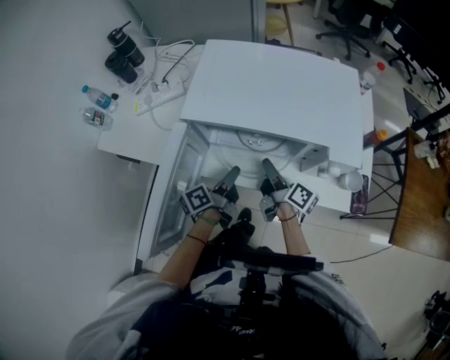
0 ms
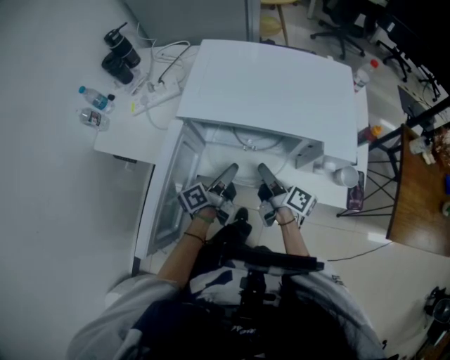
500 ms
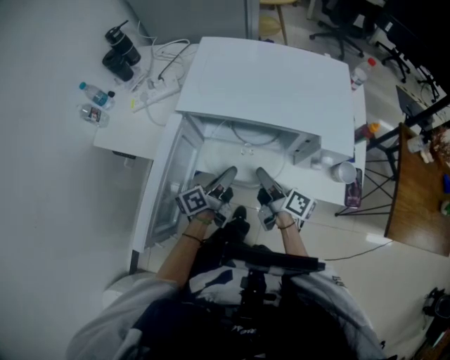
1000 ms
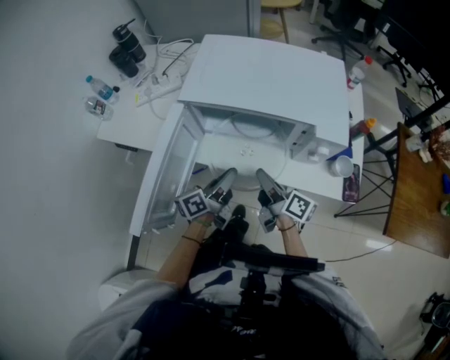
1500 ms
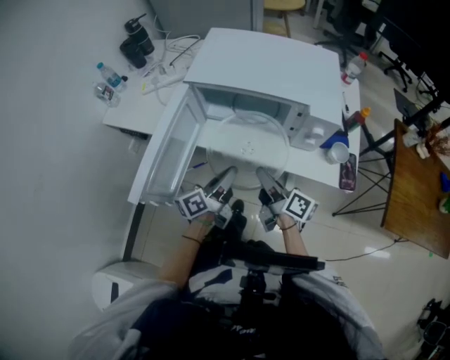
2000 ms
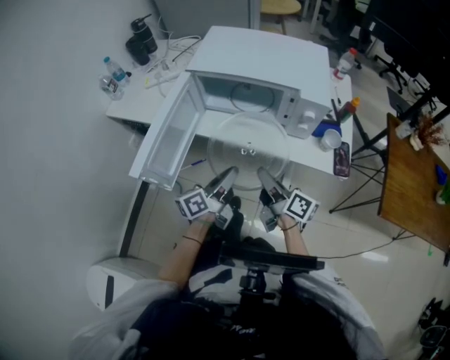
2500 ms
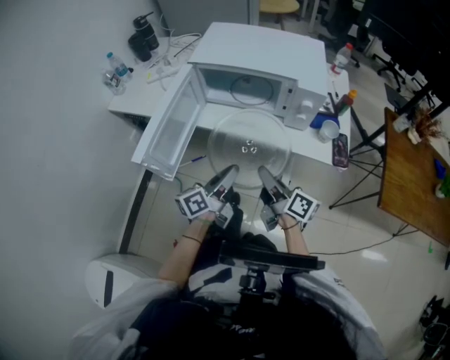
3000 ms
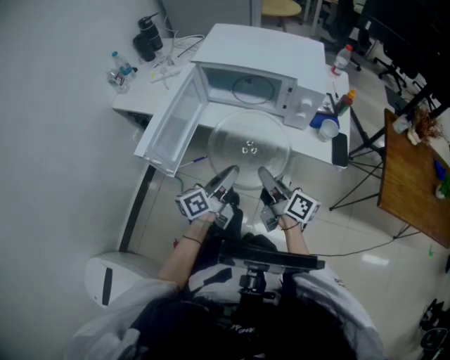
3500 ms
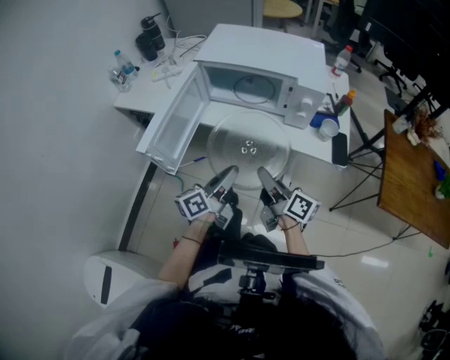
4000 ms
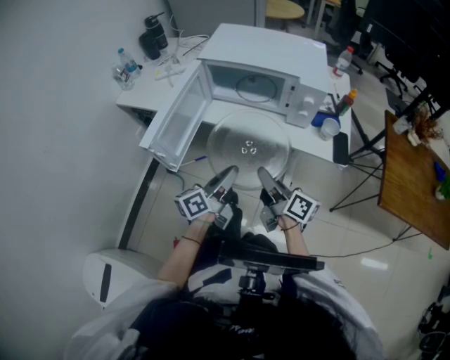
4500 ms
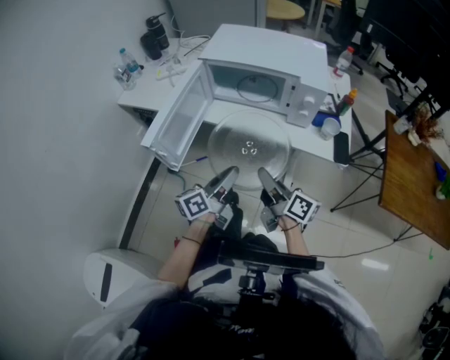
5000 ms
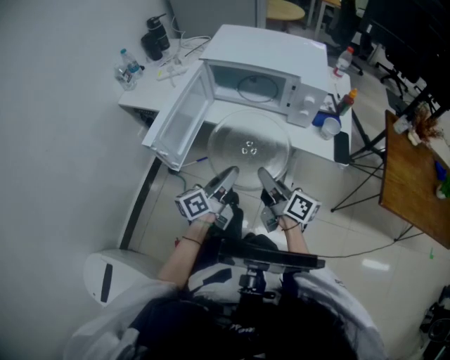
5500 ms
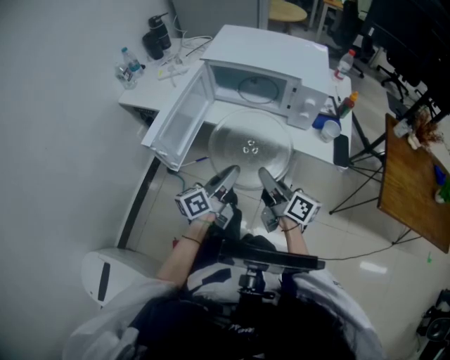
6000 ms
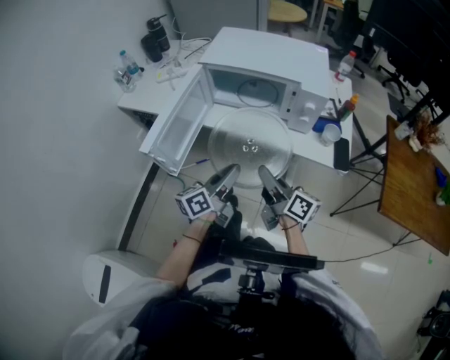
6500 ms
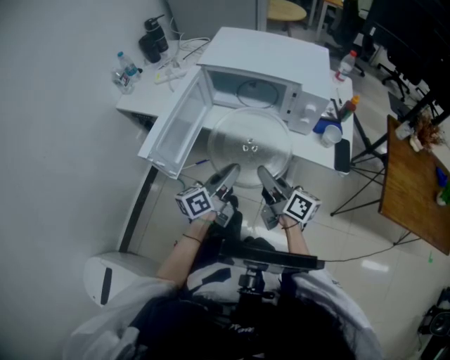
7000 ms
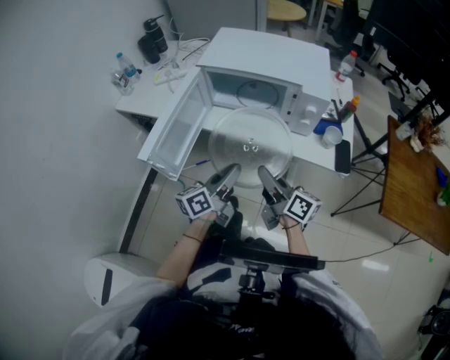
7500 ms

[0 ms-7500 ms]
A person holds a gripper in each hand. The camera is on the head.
0 ms to 2000 ms: The grippers both shift backward by some 15 cm.
2000 ms to 4000 ms: The two grippers go about 15 cm backward.
4000 ms to 5500 ms: There are only small adjustments of the grippers.
5500 ms to 7500 ms: The left gripper moves roughly 5 cm.

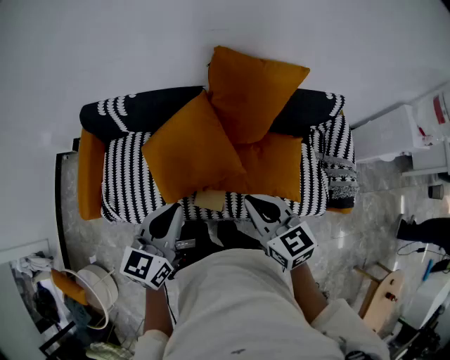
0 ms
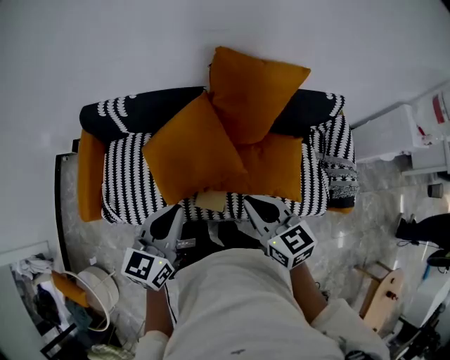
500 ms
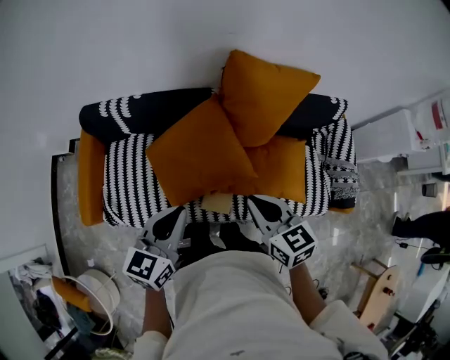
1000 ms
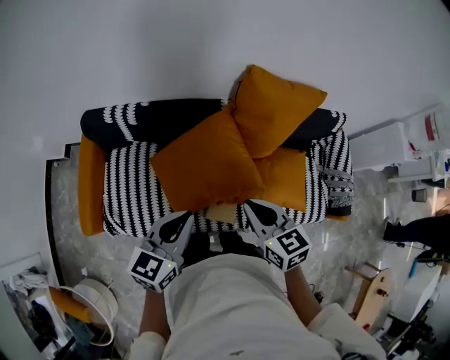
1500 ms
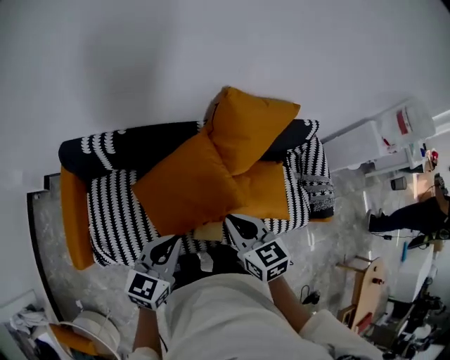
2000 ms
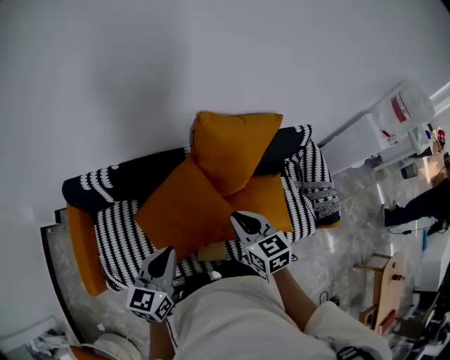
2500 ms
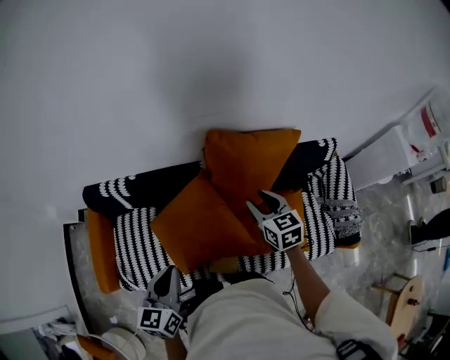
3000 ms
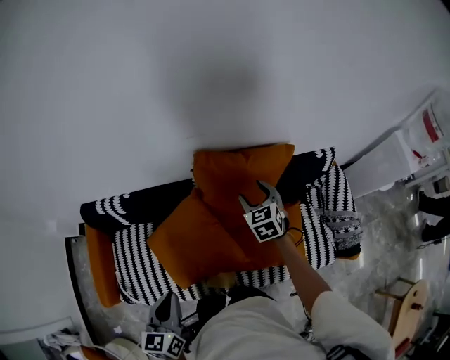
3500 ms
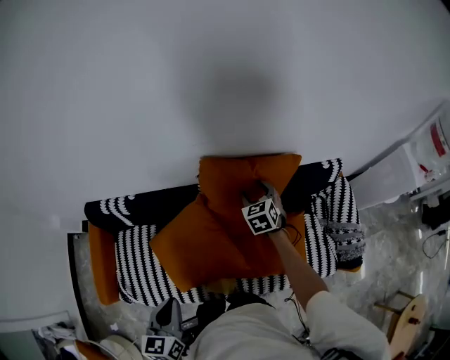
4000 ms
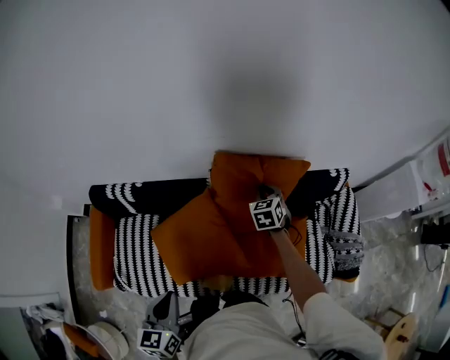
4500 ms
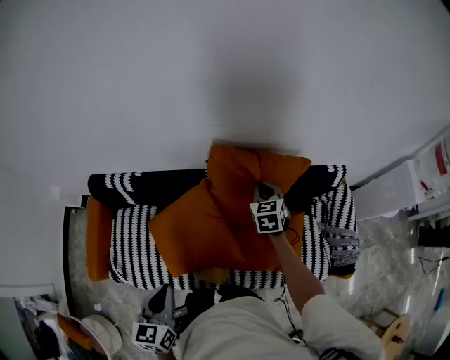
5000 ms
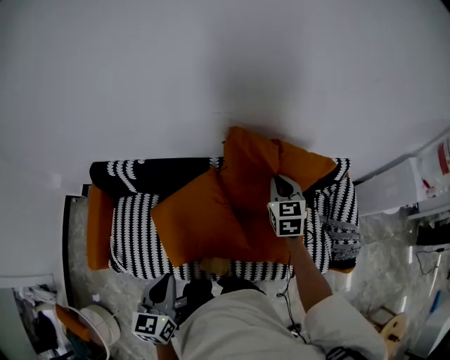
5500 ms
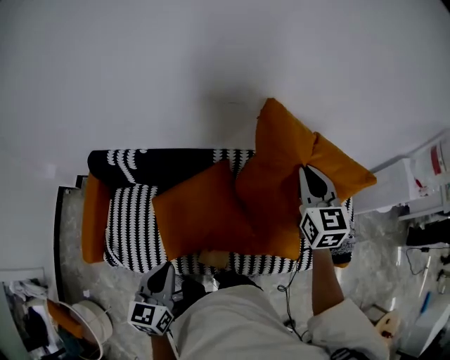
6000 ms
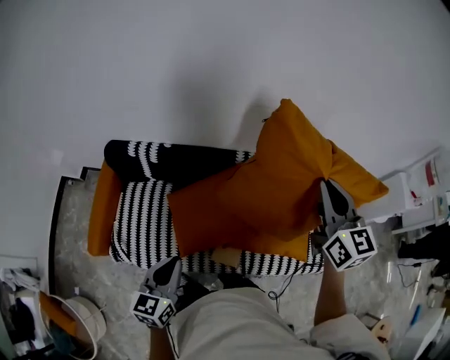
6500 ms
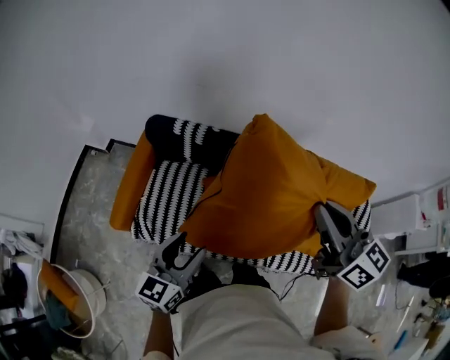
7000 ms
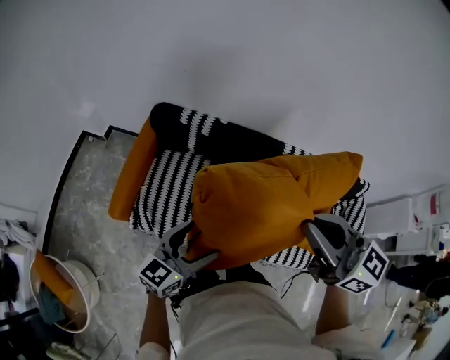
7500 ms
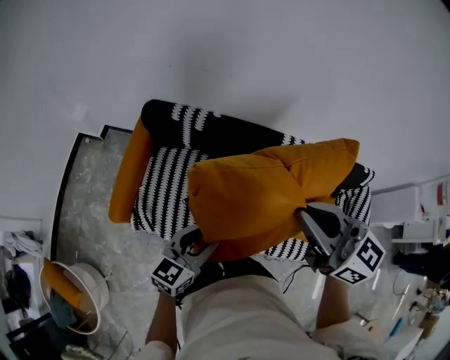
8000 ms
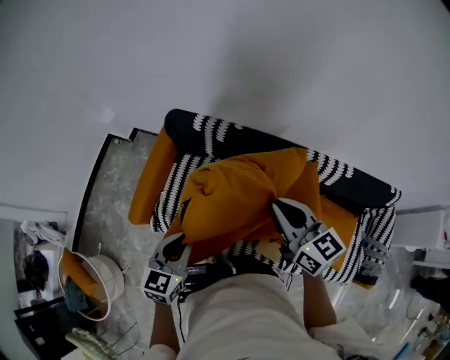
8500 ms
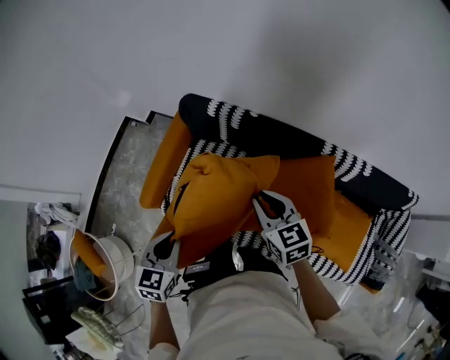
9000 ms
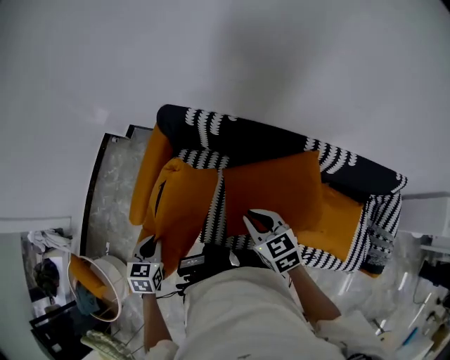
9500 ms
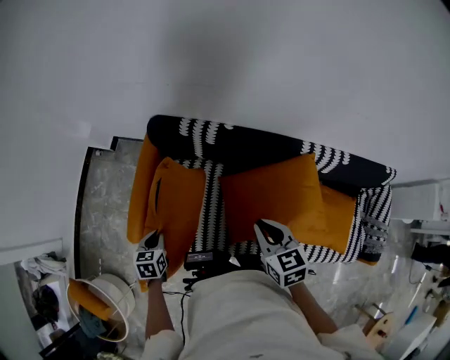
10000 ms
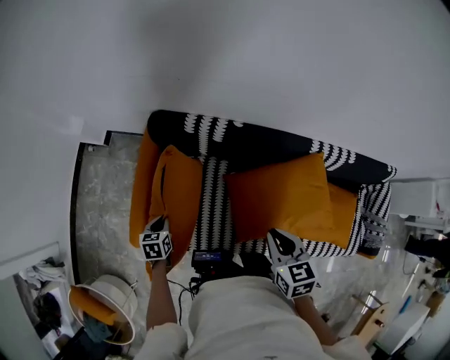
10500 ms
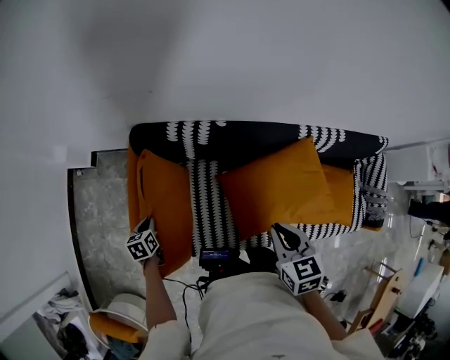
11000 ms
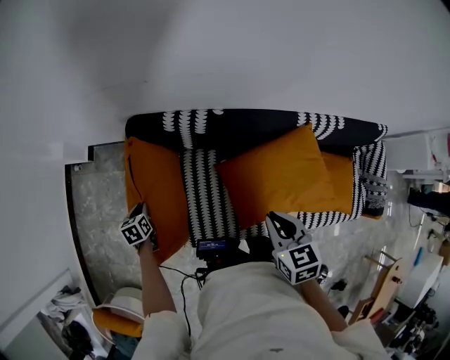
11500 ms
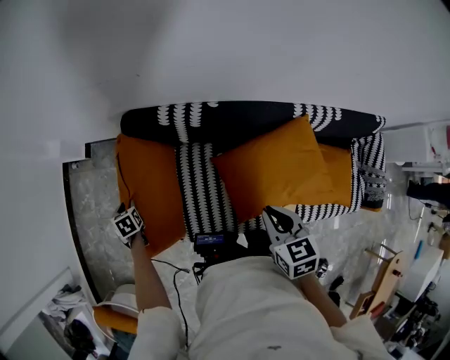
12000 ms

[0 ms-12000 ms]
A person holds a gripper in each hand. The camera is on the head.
0 ms to 2000 ms: Both grippers move to the left and forward, some 15 cm.
2000 ms to 4000 ms: The right gripper is displaced forward and to the right by some 40 cm, swivels about 20 degrees, and opens, while the left gripper shifts roughly 10 cm to the right, and changes its angle by some 30 degrees.
4000 ms to 6000 ms: The right gripper moves upward and backward, some 25 cm, rotates roughly 20 degrees, and closes up, while the left gripper ends up approximately 5 cm from where it was.
6000 ms to 8000 ms: The left gripper goes about 20 cm to the left, and opens. Meanwhile the right gripper shifts about 40 cm to the left, and swivels some 50 degrees.
8000 ms to 10000 ms: The right gripper goes roughly 25 cm downward and forward, and points its fingers roughly 30 degrees further downward. The left gripper goes approximately 30 cm to the left, downward and forward, and points its fingers about 40 degrees further downward.
10000 ms to 12000 ms: The left gripper is displaced forward, to the left and downward by roughly 25 cm.

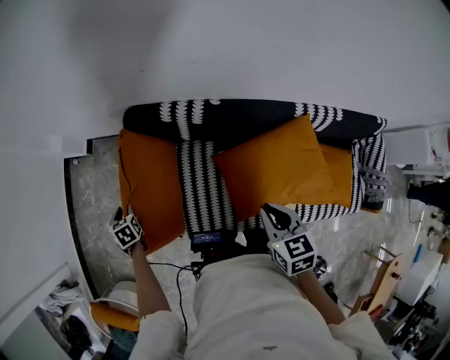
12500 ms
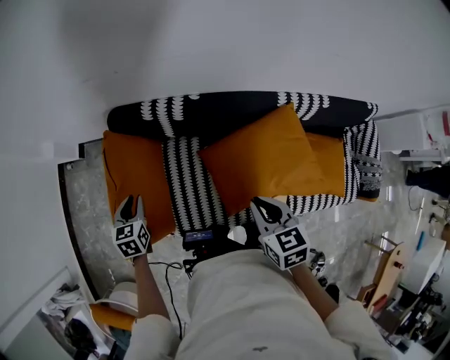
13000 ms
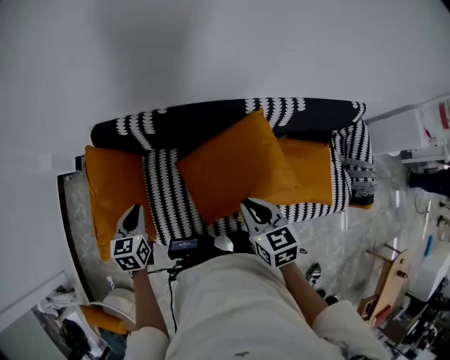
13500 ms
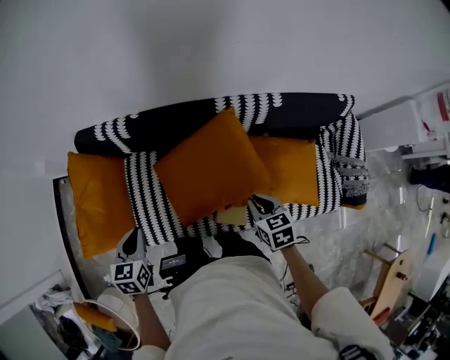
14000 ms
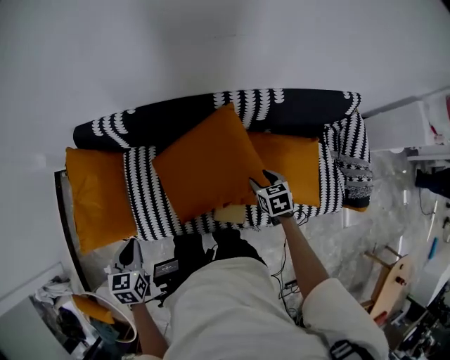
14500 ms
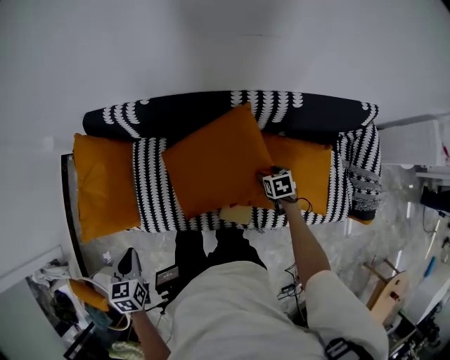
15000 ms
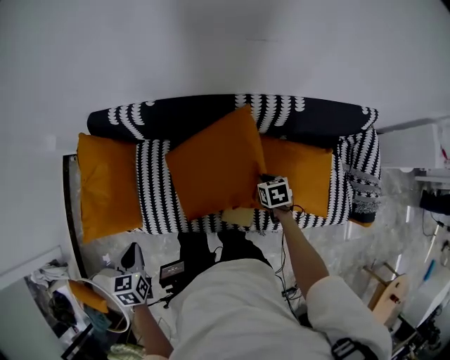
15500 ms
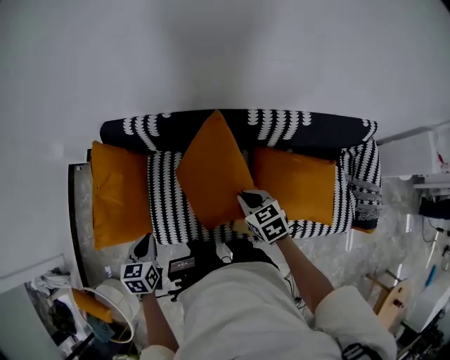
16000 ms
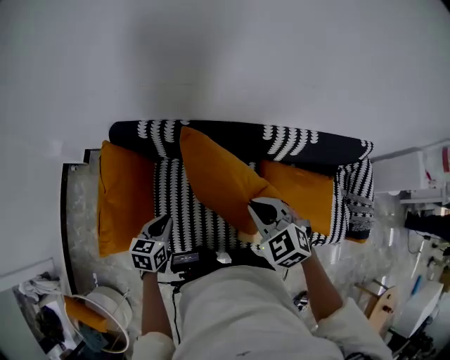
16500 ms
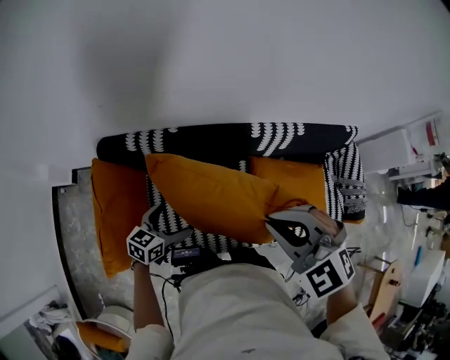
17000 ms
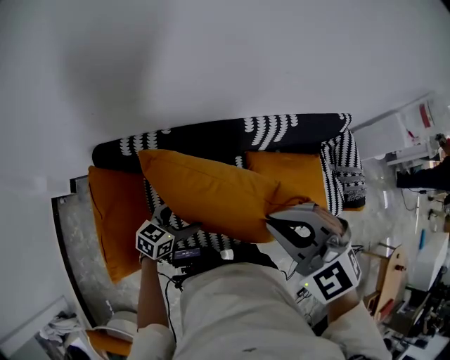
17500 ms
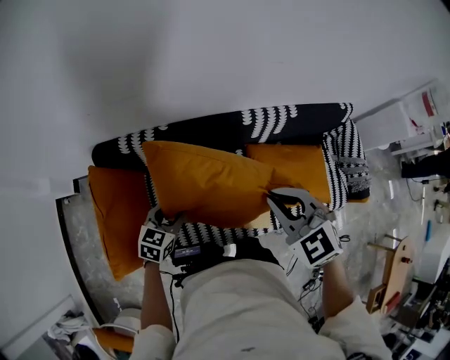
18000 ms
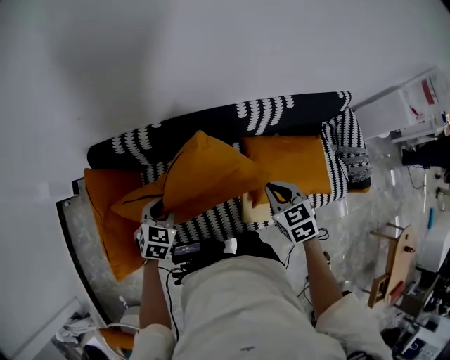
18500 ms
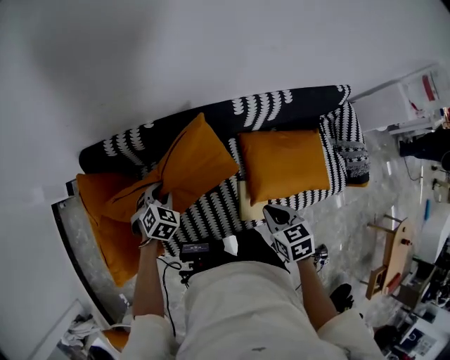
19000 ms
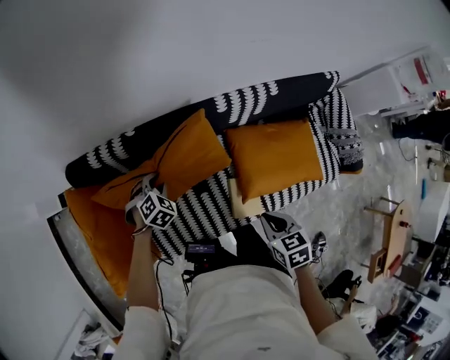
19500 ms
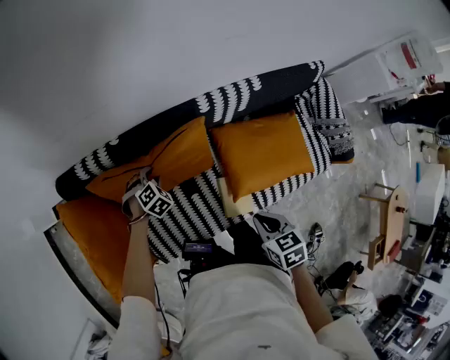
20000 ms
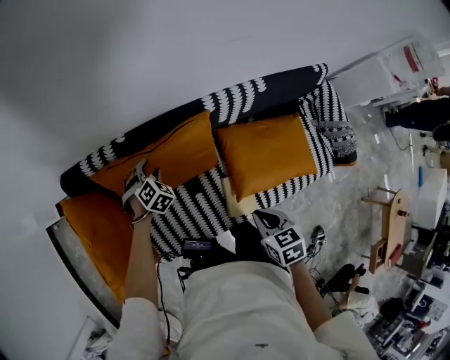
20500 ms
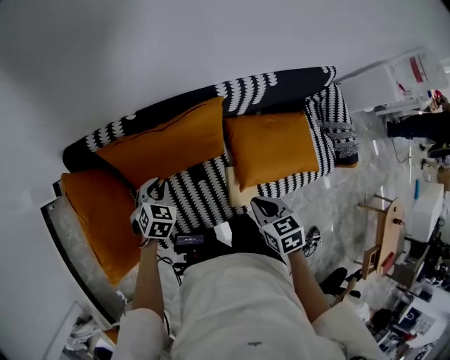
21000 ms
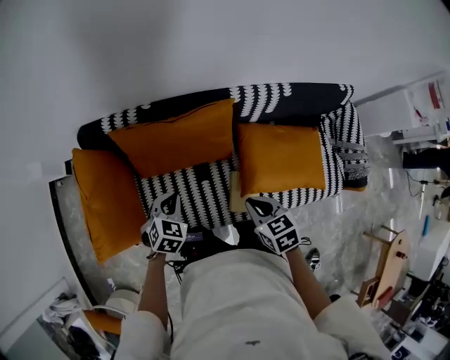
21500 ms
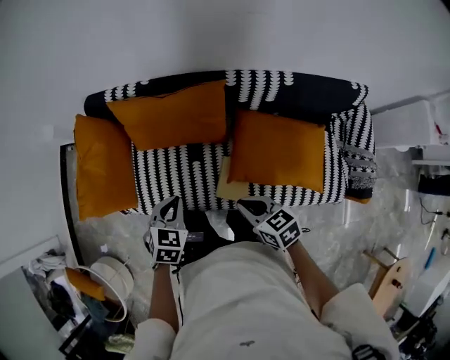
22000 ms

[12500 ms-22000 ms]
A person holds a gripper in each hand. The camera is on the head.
12500 ms to 14500 ms: The left gripper shifts approximately 50 cm to the right, backward and upward, and rotates some 30 degrees, while the right gripper travels to the right and downward by roughly 40 cm, and opens up.
14500 ms to 16500 ms: The right gripper goes roughly 35 cm to the left and upward, twists some 50 degrees counterclockwise, seen from behind, and closes its fingers, while the left gripper moves forward and to the left, roughly 10 cm.
16500 ms to 18000 ms: The right gripper moves upward, about 10 cm; the left gripper goes approximately 5 cm forward, turns by roughly 30 degrees, and opens its fingers.
18000 ms to 20000 ms: The right gripper moves downward and to the right, about 20 cm, and twists roughly 50 degrees clockwise, seen from behind, while the left gripper shifts approximately 25 cm downward and forward, and turns by some 50 degrees.
20000 ms to 22000 ms: The right gripper shifts by about 10 cm, and changes its angle by roughly 40 degrees. Meanwhile the left gripper shifts by some 35 cm, and rotates around the line of its fingers by roughly 50 degrees, counterclockwise from behind.
